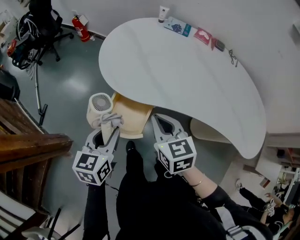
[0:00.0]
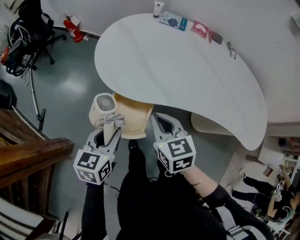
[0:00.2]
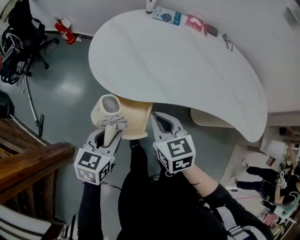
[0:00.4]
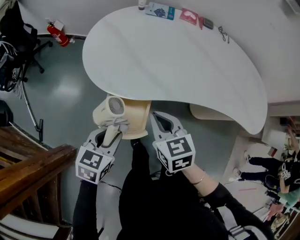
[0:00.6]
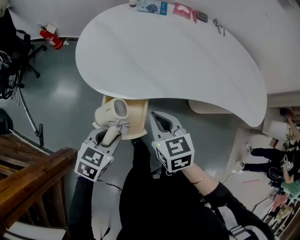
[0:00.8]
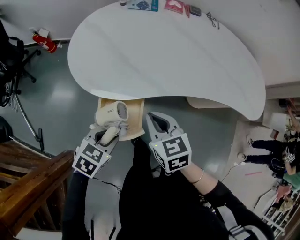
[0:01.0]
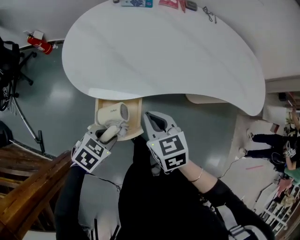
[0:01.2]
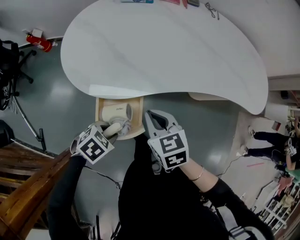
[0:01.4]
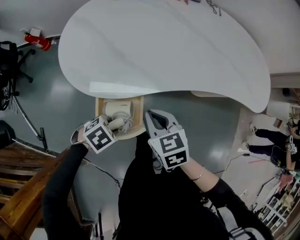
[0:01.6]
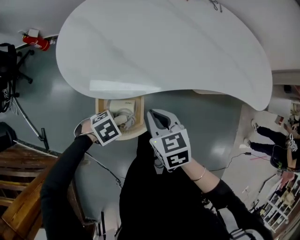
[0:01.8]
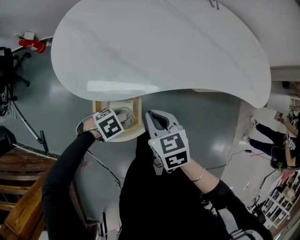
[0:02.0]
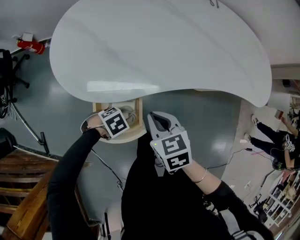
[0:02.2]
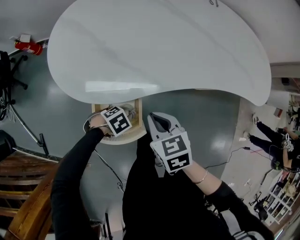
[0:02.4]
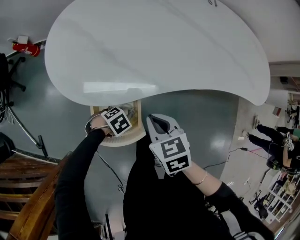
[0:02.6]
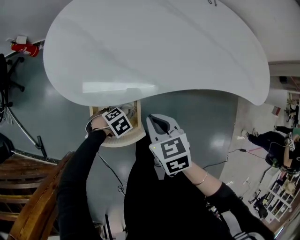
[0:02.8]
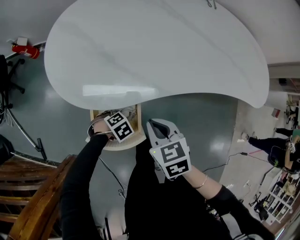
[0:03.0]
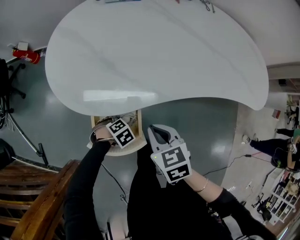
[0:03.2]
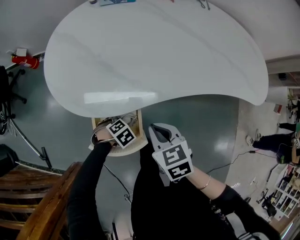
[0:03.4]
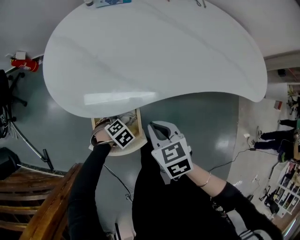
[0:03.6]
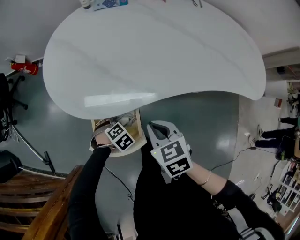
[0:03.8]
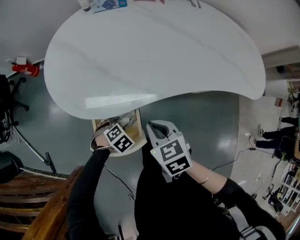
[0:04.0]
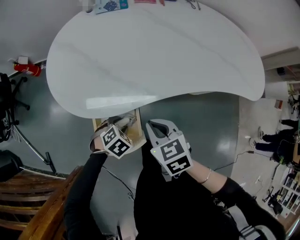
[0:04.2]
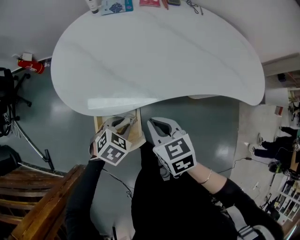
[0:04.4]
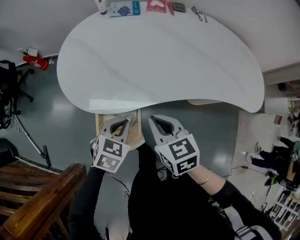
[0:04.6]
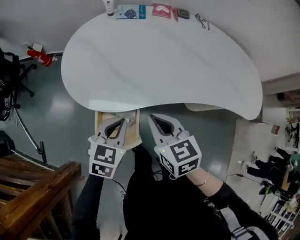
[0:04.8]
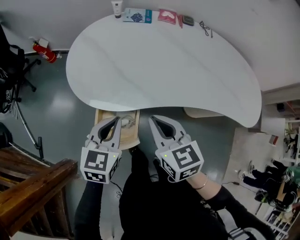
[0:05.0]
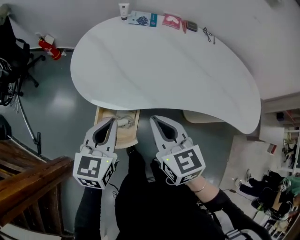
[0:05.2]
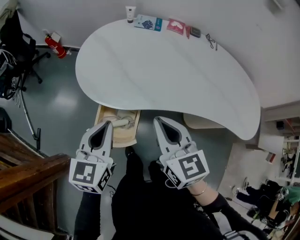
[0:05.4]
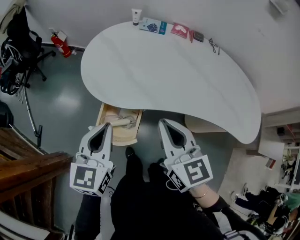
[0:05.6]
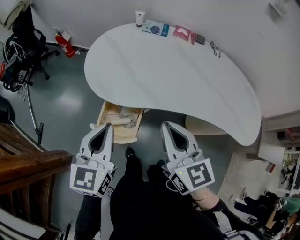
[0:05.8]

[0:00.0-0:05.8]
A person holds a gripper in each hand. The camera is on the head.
0:00.0 to 0:01.4: The right gripper moves downward, some 5 cm, while the left gripper goes roughly 15 cm downward, and points its fingers approximately 40 degrees further downward.
0:01.4 to 0:02.8: The left gripper moves downward, approximately 15 cm, and turns by some 20 degrees.
0:02.8 to 0:04.4: The left gripper heads upward, covering about 15 cm, and changes its angle by about 30 degrees.
0:04.4 to 0:05.8: The left gripper moves upward, about 25 cm, tilts its fingers roughly 50 degrees upward, and closes up, while the right gripper travels upward by some 15 cm, and tips its fingers upward by approximately 30 degrees.

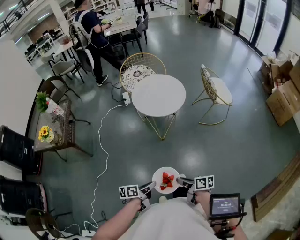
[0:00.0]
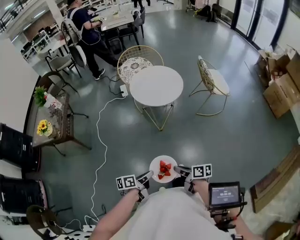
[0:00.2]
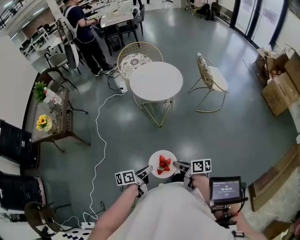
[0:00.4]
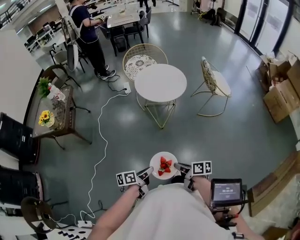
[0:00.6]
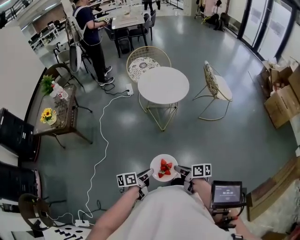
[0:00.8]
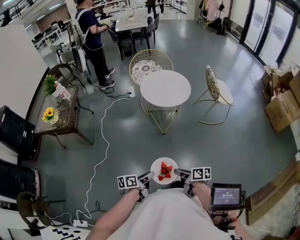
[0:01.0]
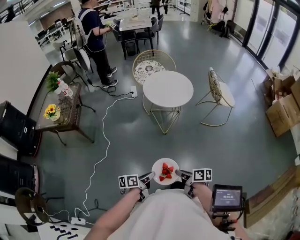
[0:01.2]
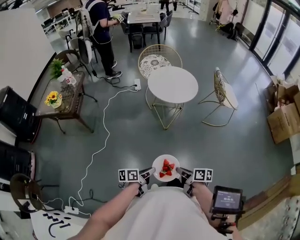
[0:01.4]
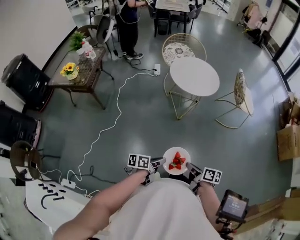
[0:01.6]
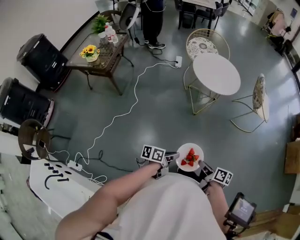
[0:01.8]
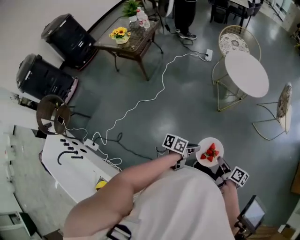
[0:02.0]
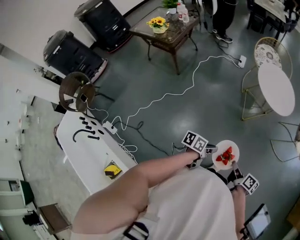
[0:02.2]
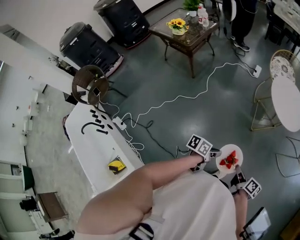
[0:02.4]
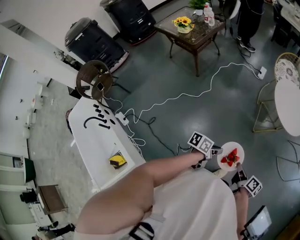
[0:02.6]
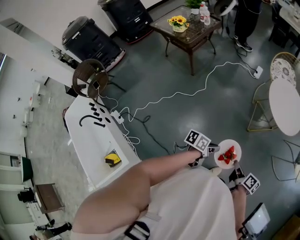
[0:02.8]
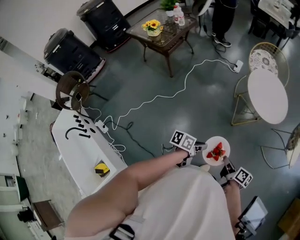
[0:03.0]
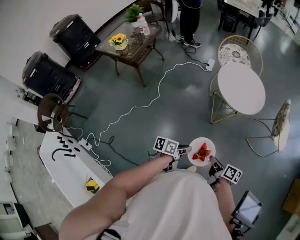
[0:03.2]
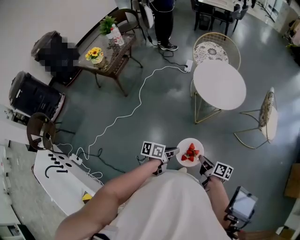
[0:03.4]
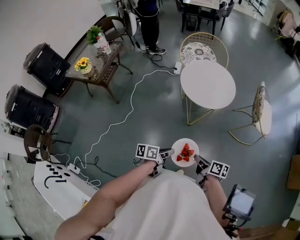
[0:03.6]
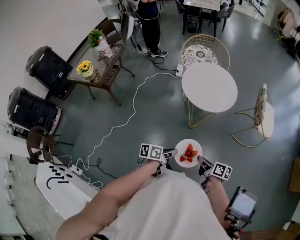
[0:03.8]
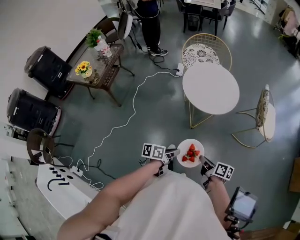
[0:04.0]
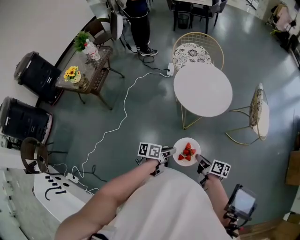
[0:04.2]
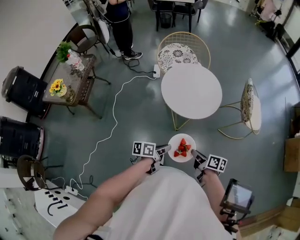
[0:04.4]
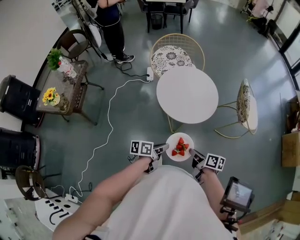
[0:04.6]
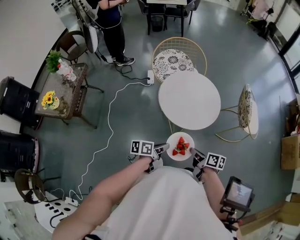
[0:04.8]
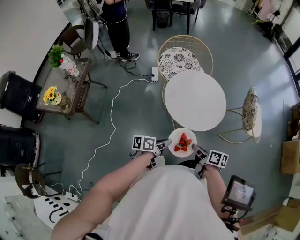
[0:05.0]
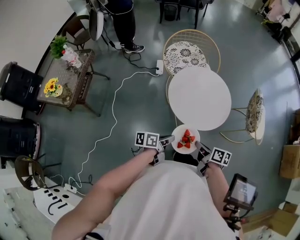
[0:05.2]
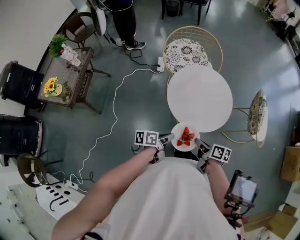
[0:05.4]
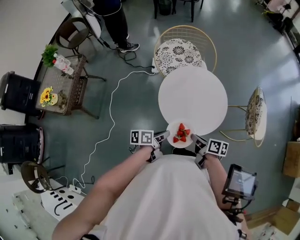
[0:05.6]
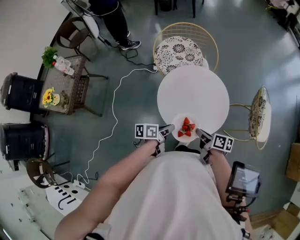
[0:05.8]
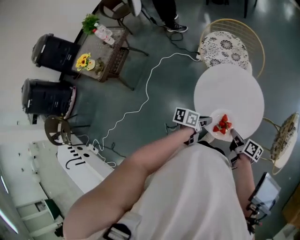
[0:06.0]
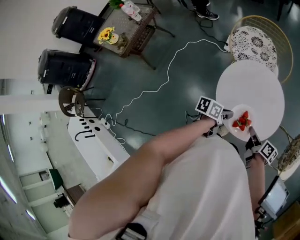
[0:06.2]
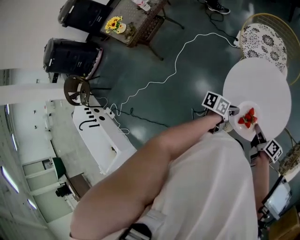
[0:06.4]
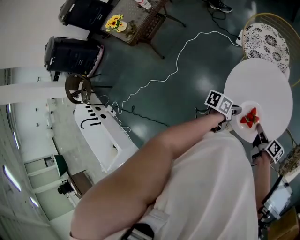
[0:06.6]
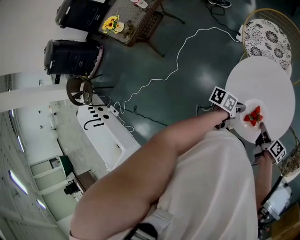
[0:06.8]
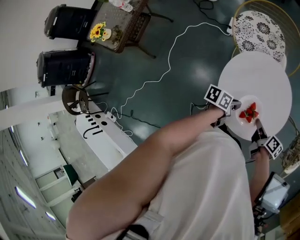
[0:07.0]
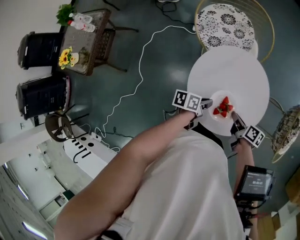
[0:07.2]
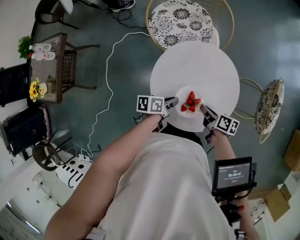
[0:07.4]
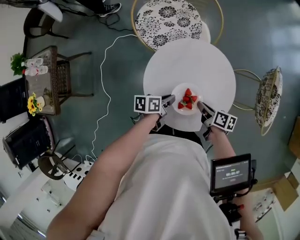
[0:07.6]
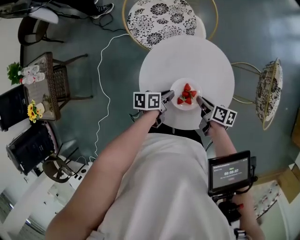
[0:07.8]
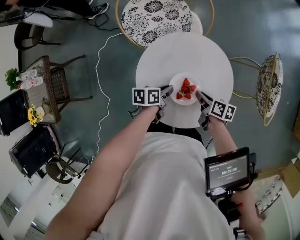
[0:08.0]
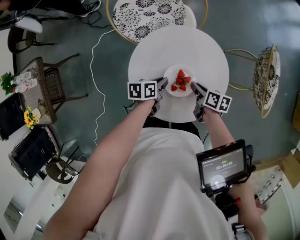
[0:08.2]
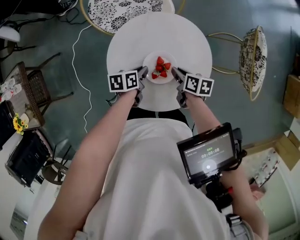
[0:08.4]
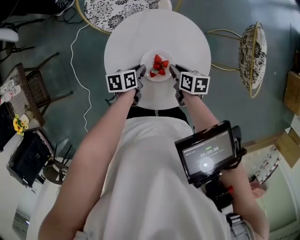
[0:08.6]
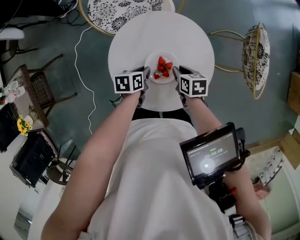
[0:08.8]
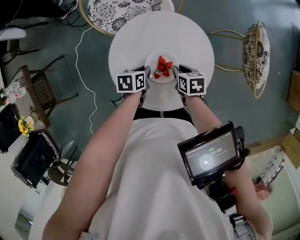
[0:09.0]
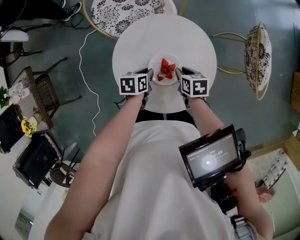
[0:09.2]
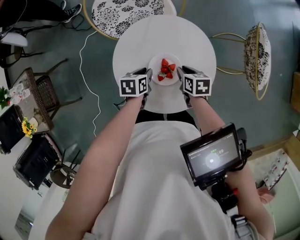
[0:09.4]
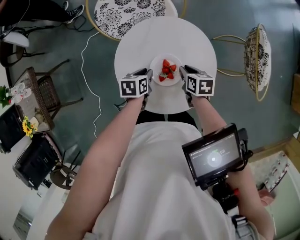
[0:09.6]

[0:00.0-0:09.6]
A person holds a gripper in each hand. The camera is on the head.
0:00.0 to 0:01.6: Both grippers move backward, approximately 5 cm.
0:01.6 to 0:03.2: The two grippers go approximately 15 cm forward.
0:03.2 to 0:04.8: Both grippers travel together forward, some 25 cm.
0:04.8 to 0:06.4: The two grippers go some 25 cm forward.
0:06.4 to 0:08.0: Both grippers travel together forward and downward, some 15 cm. The right gripper rotates roughly 20 degrees; the left gripper swivels about 20 degrees.
0:08.0 to 0:09.6: The left gripper rotates approximately 20 degrees. Meanwhile the right gripper turns by some 30 degrees.

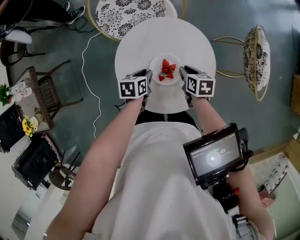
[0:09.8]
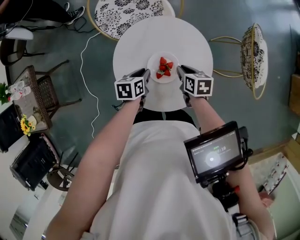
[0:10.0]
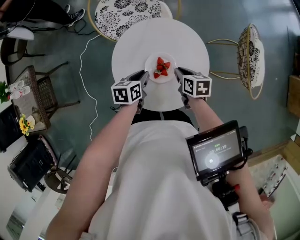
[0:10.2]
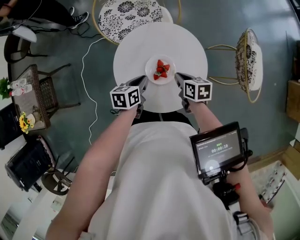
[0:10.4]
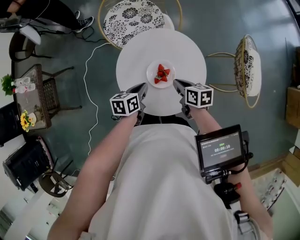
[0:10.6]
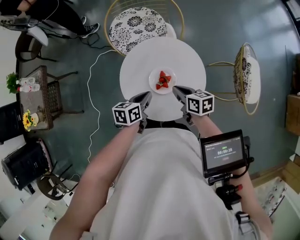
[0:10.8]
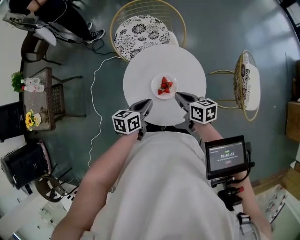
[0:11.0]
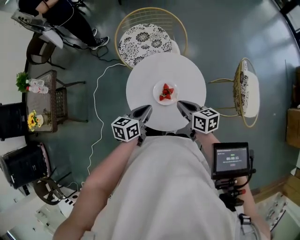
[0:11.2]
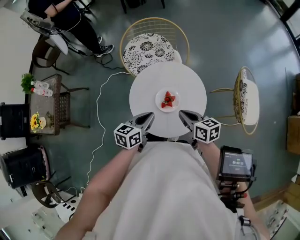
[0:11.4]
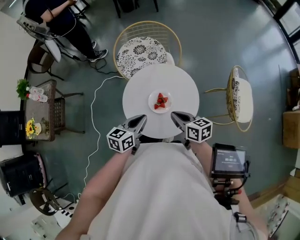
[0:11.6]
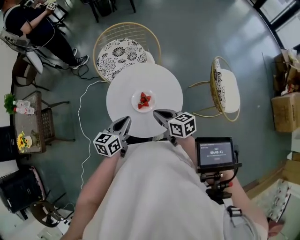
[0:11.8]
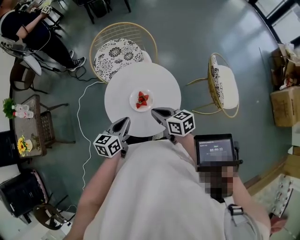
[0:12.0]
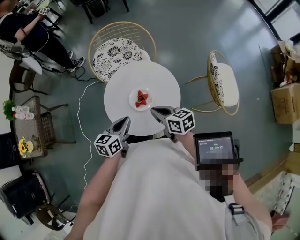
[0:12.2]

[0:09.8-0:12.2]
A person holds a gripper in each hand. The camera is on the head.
0:09.8 to 0:11.0: The grippers both shift upward and backward by about 15 cm. The left gripper swivels some 20 degrees, while the right gripper turns by roughly 30 degrees.
0:11.0 to 0:12.2: The right gripper shifts by approximately 5 cm. Meanwhile the left gripper is displaced upward by approximately 5 cm.

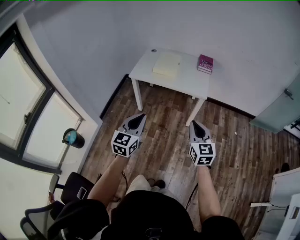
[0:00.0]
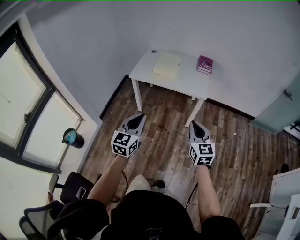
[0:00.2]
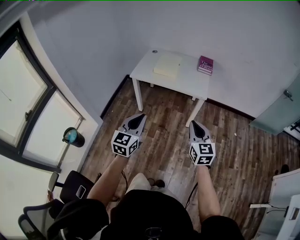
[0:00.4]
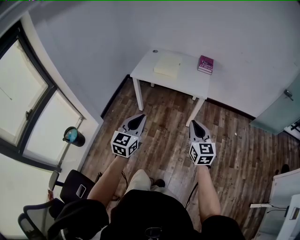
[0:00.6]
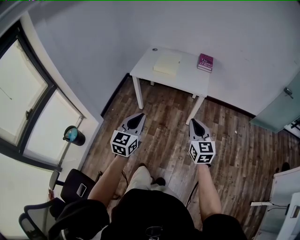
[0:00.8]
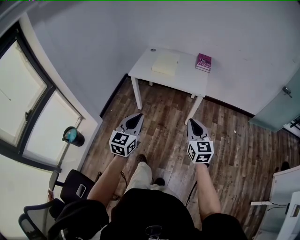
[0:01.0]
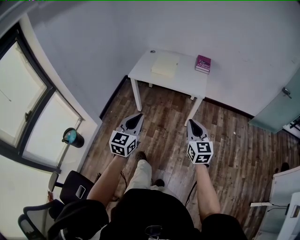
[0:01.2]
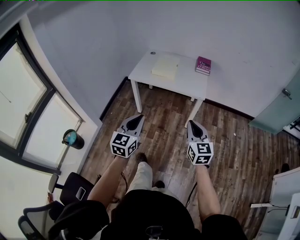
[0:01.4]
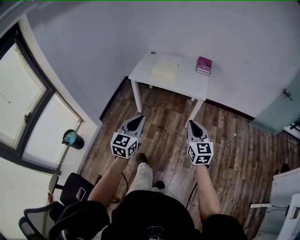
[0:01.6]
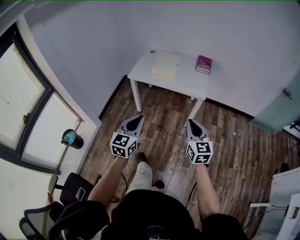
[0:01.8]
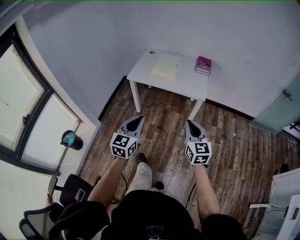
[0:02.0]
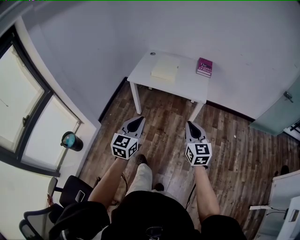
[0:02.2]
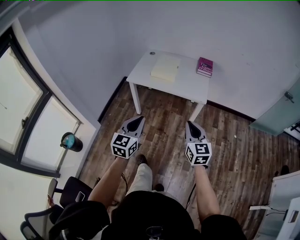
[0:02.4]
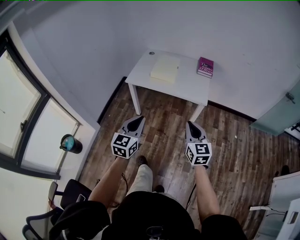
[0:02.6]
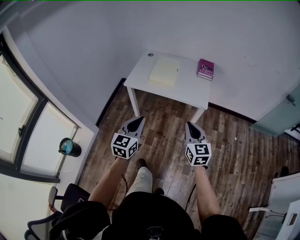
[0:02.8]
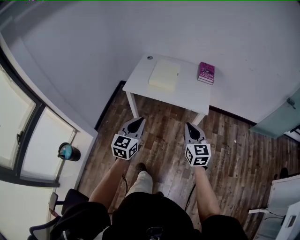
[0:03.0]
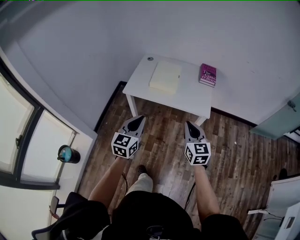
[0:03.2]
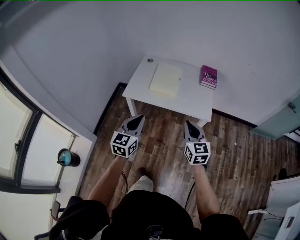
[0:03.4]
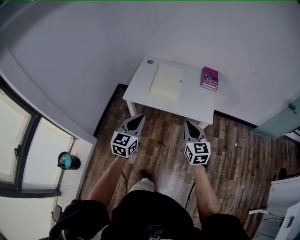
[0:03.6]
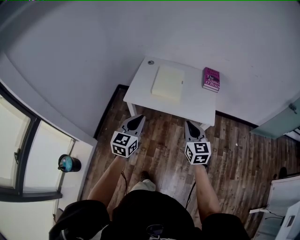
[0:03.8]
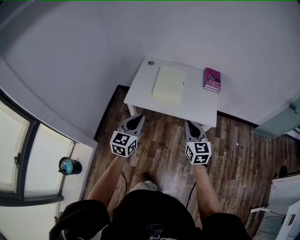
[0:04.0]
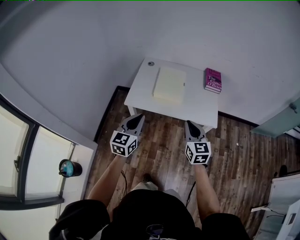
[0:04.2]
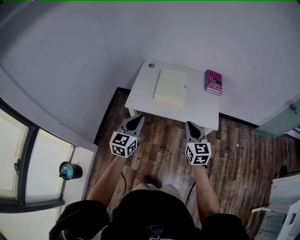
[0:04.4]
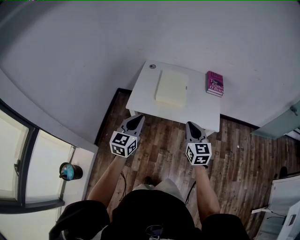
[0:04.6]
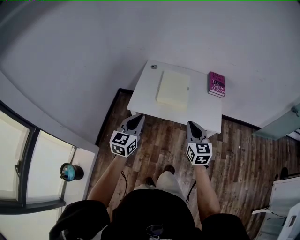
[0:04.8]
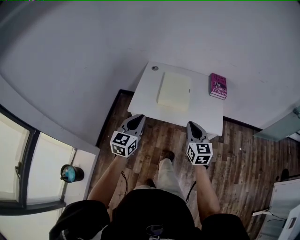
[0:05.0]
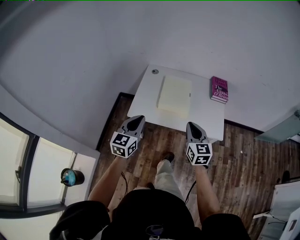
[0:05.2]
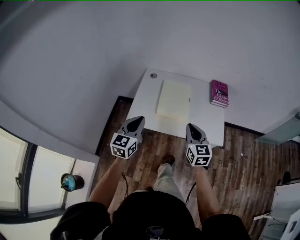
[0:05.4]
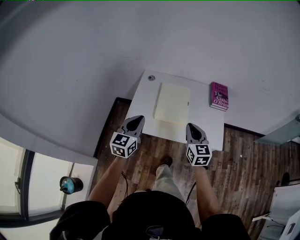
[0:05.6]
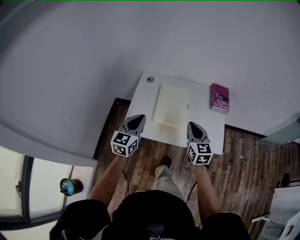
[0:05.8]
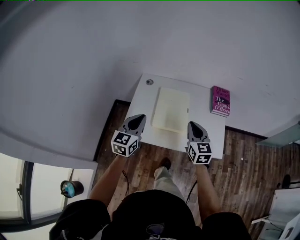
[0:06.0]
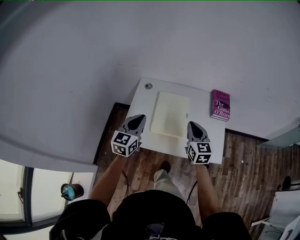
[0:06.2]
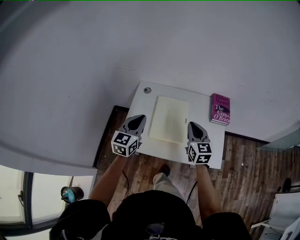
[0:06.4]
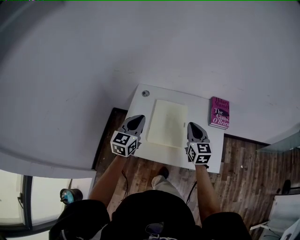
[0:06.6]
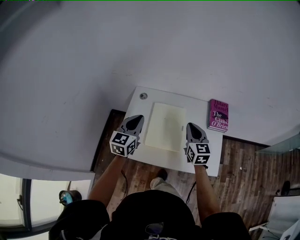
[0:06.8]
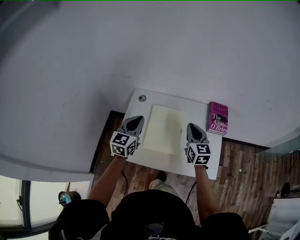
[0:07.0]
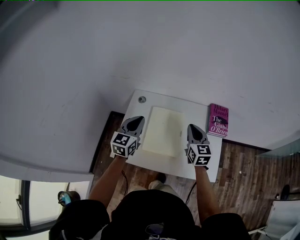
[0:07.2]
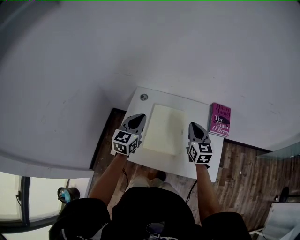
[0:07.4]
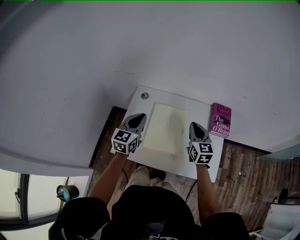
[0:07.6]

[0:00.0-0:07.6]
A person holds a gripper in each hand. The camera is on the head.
0:00.0 to 0:01.6: The grippers make only small movements.
0:01.6 to 0:03.0: Both grippers travel together forward, some 20 cm.
0:03.0 to 0:04.6: Both grippers move forward and to the left, approximately 25 cm.
0:04.6 to 0:06.0: The grippers both shift forward by some 25 cm.
0:06.0 to 0:07.6: Both grippers move forward, about 20 cm.
